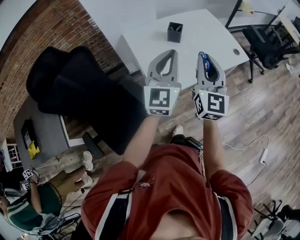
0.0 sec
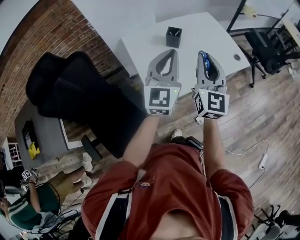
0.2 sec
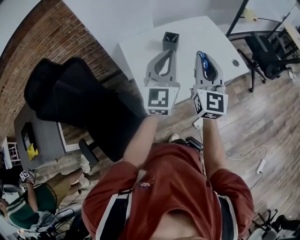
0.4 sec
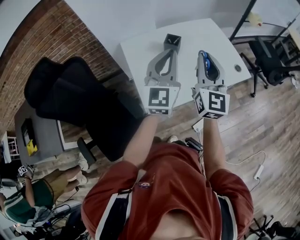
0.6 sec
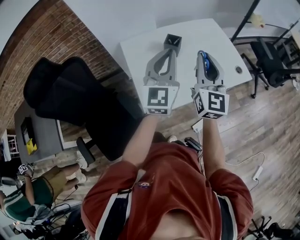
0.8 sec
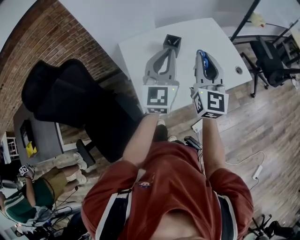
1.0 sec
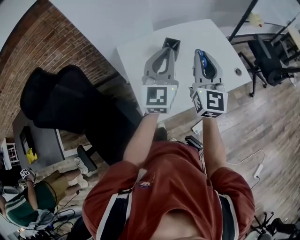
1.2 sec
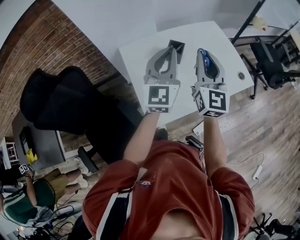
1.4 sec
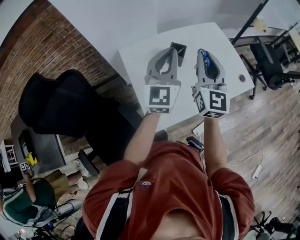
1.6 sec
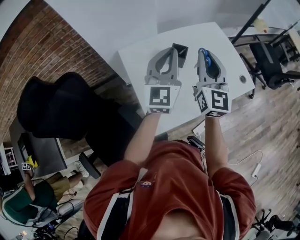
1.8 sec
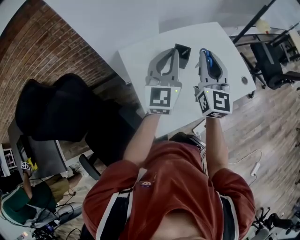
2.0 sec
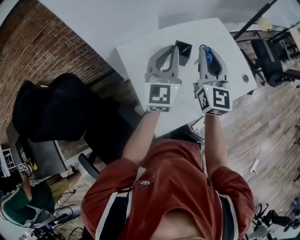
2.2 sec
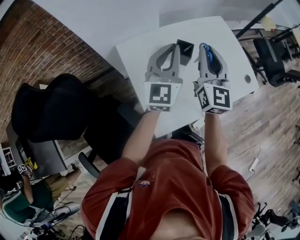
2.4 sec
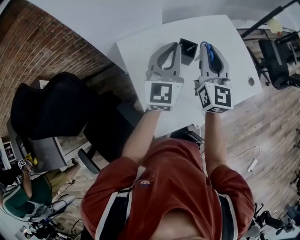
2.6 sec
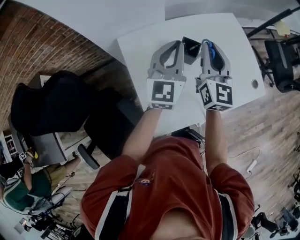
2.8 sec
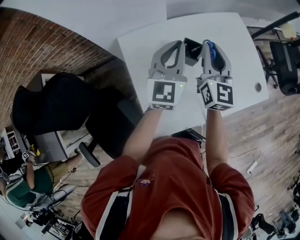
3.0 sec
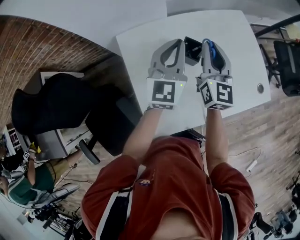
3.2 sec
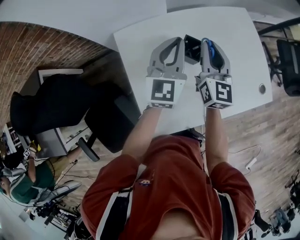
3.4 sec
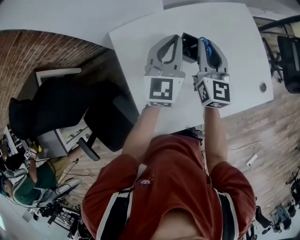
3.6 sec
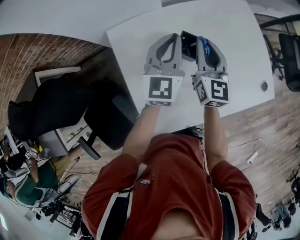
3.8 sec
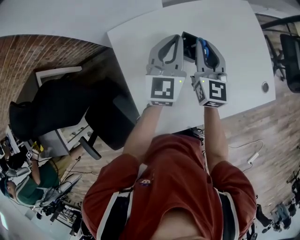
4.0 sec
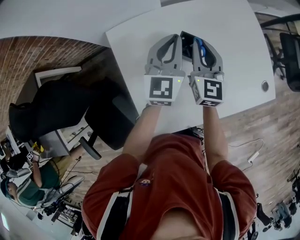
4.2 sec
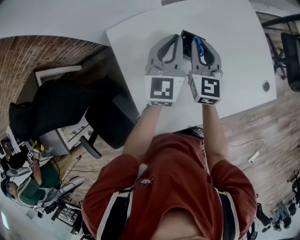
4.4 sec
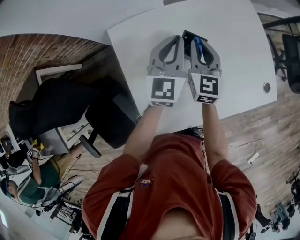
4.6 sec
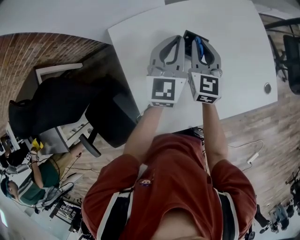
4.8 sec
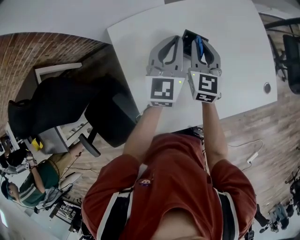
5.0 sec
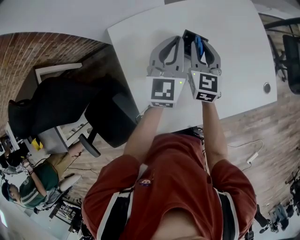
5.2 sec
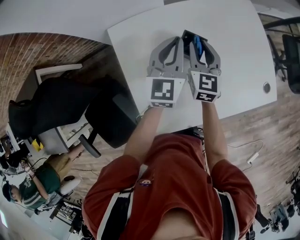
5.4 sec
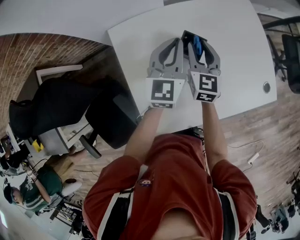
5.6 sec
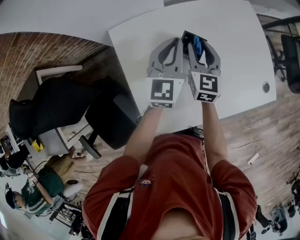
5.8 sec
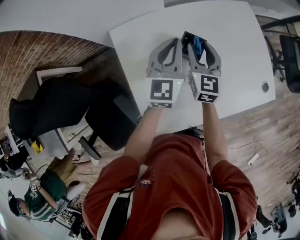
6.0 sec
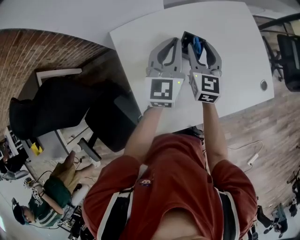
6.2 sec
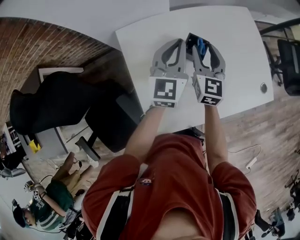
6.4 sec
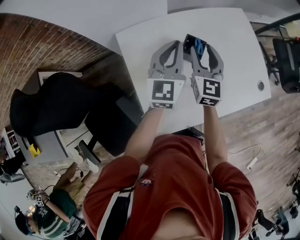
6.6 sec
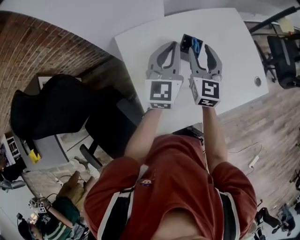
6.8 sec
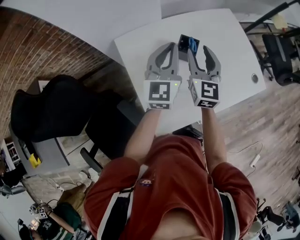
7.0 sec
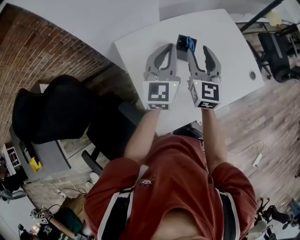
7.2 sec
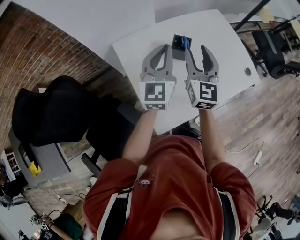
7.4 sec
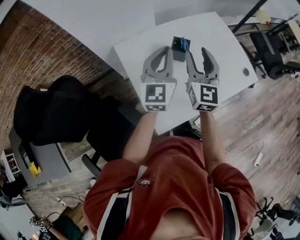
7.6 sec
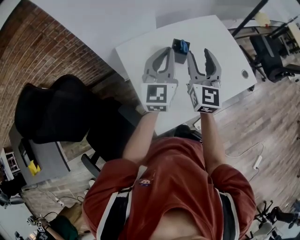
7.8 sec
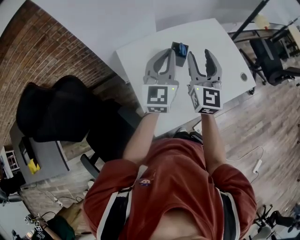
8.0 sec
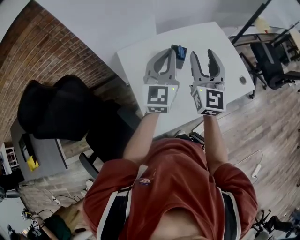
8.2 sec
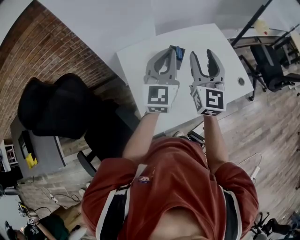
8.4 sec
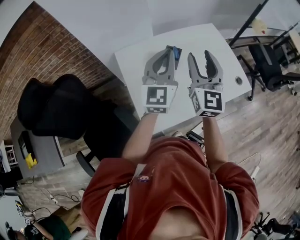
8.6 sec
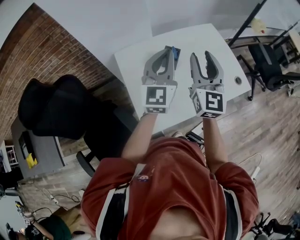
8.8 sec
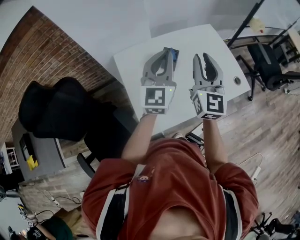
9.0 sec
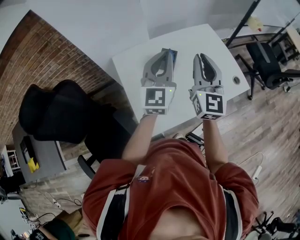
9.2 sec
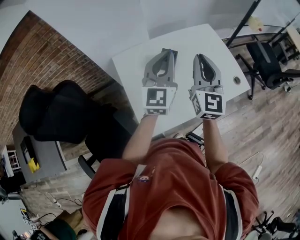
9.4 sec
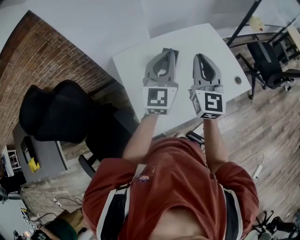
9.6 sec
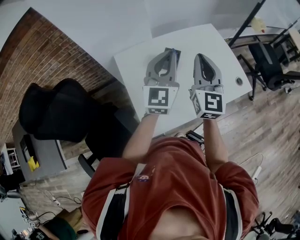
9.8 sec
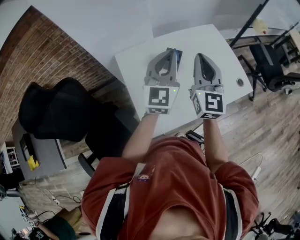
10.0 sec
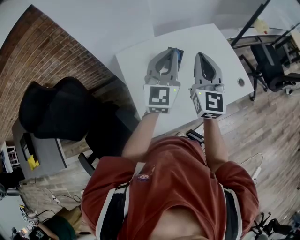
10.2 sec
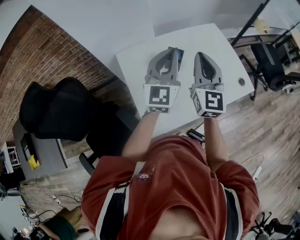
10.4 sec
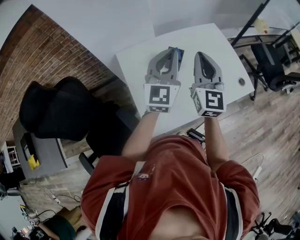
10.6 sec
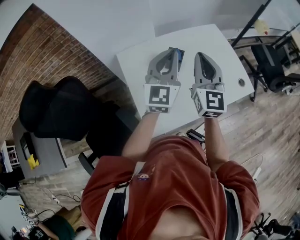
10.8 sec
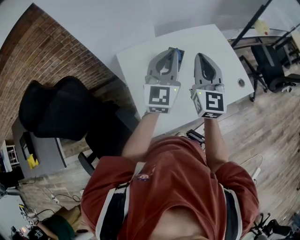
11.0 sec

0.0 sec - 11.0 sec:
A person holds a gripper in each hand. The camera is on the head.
0.0 sec - 1.6 sec: Both grippers travel together forward, some 20 cm.
1.6 sec - 3.2 sec: The grippers both shift forward and downward by about 20 cm.
3.2 sec - 4.8 sec: The right gripper travels downward by roughly 10 cm. The left gripper is displaced downward by approximately 5 cm.
4.8 sec - 6.2 sec: The right gripper opens its fingers.
6.2 sec - 7.8 sec: The right gripper travels upward and backward by approximately 20 cm, while the left gripper moves backward and upward, about 15 cm.
7.8 sec - 9.4 sec: The right gripper travels to the right and upward by about 10 cm, and closes; the left gripper shifts roughly 5 cm to the right.
9.4 sec - 11.0 sec: The grippers stay close to where they were, moving slightly.

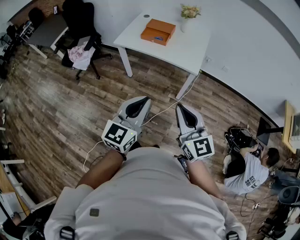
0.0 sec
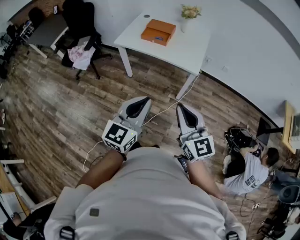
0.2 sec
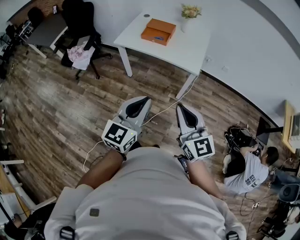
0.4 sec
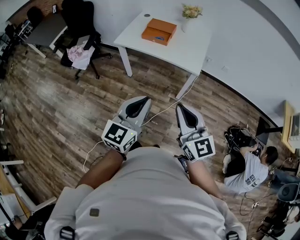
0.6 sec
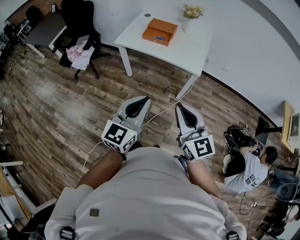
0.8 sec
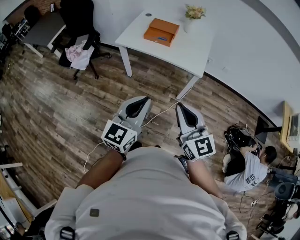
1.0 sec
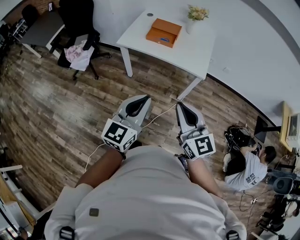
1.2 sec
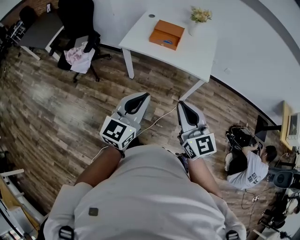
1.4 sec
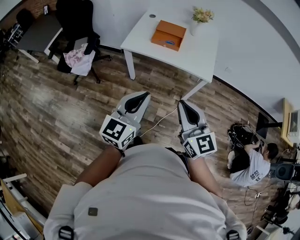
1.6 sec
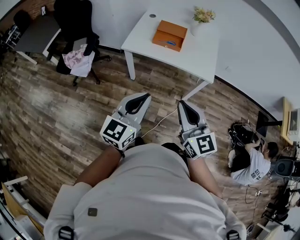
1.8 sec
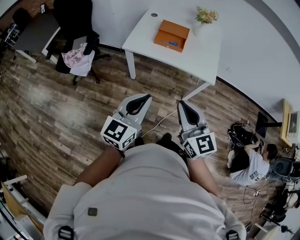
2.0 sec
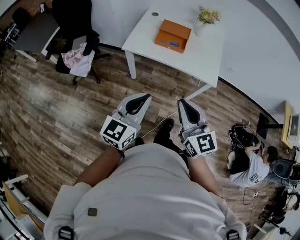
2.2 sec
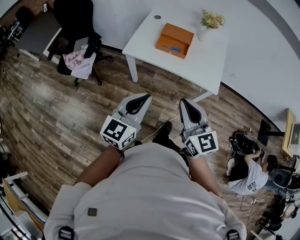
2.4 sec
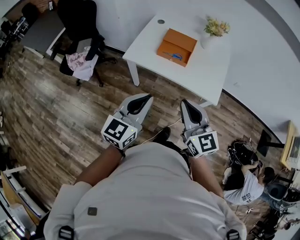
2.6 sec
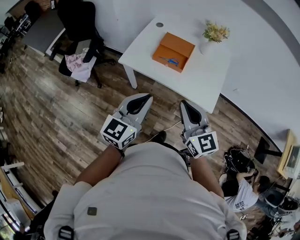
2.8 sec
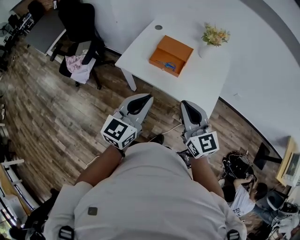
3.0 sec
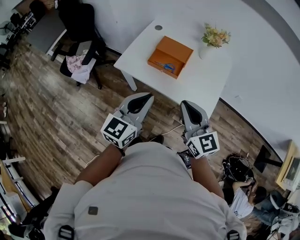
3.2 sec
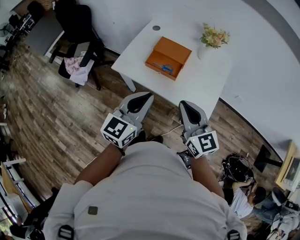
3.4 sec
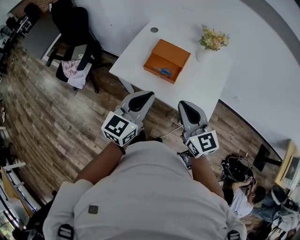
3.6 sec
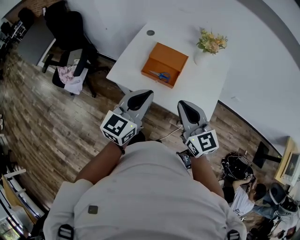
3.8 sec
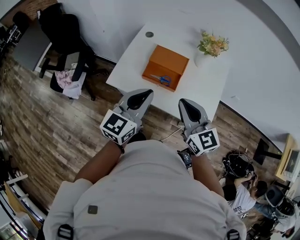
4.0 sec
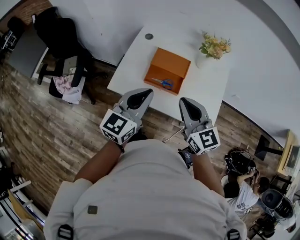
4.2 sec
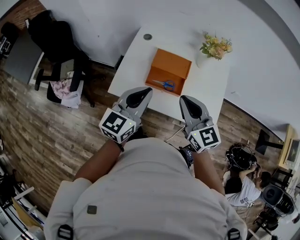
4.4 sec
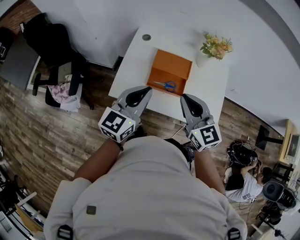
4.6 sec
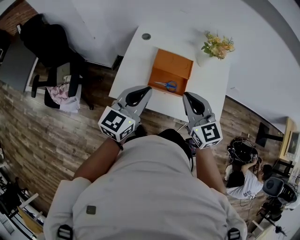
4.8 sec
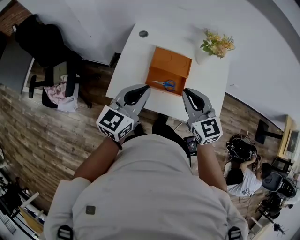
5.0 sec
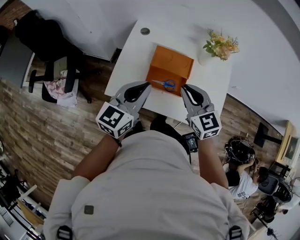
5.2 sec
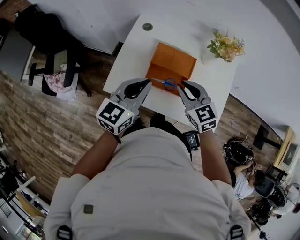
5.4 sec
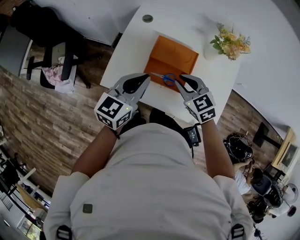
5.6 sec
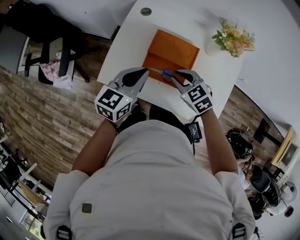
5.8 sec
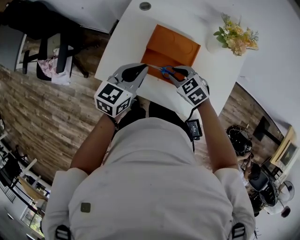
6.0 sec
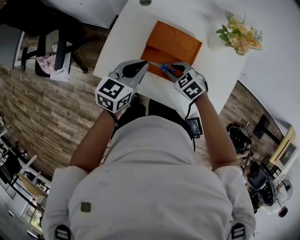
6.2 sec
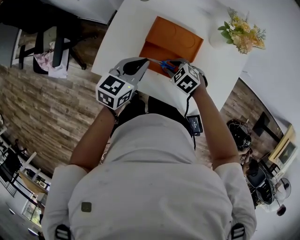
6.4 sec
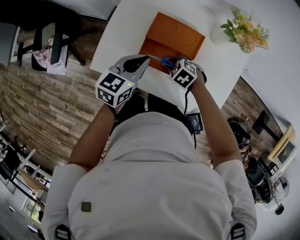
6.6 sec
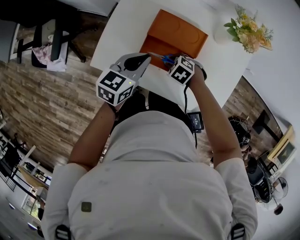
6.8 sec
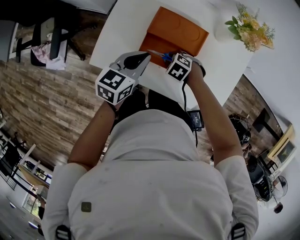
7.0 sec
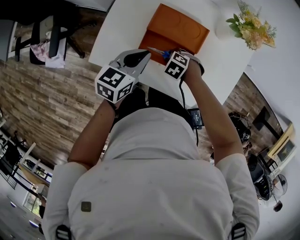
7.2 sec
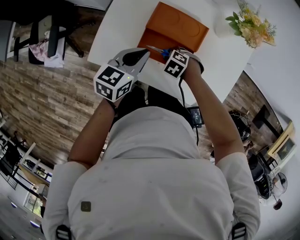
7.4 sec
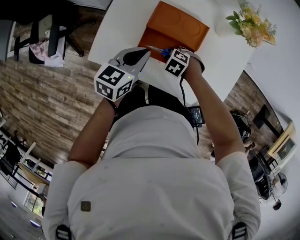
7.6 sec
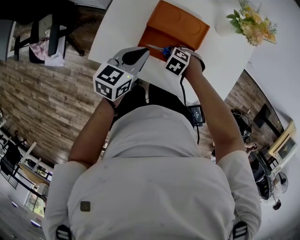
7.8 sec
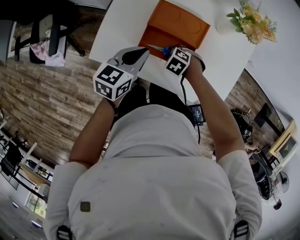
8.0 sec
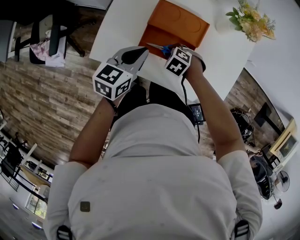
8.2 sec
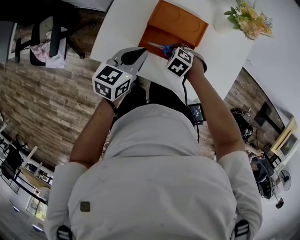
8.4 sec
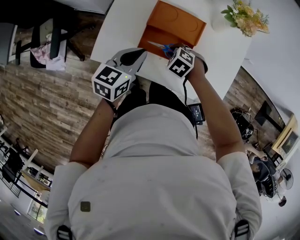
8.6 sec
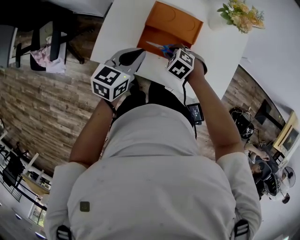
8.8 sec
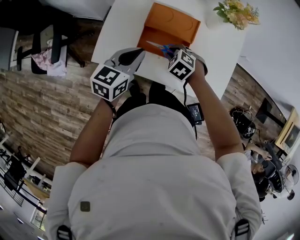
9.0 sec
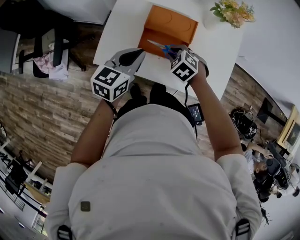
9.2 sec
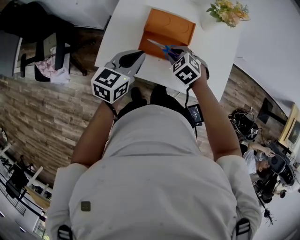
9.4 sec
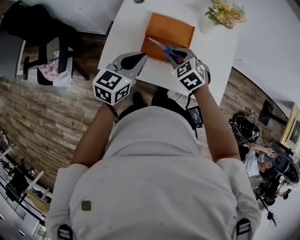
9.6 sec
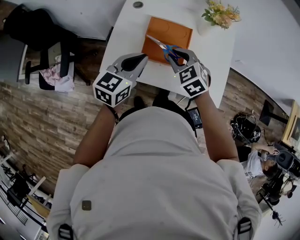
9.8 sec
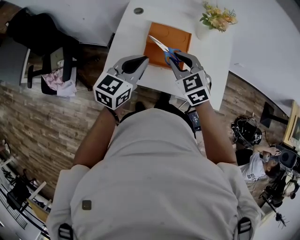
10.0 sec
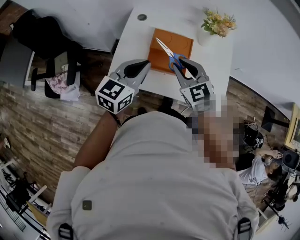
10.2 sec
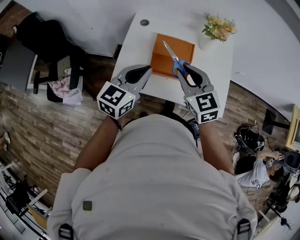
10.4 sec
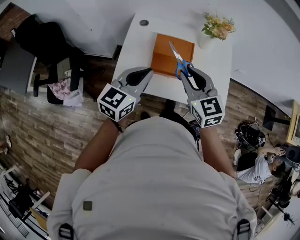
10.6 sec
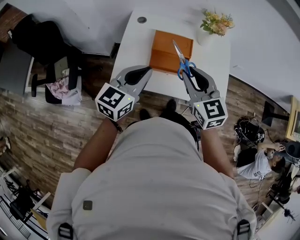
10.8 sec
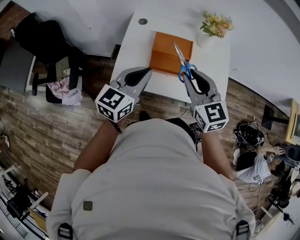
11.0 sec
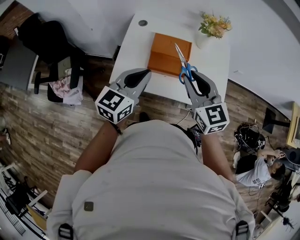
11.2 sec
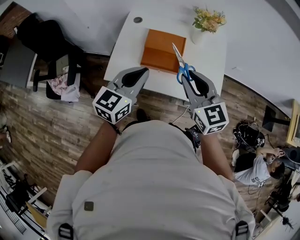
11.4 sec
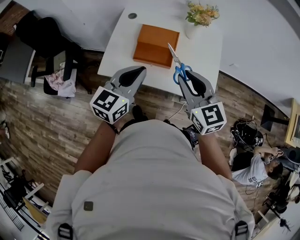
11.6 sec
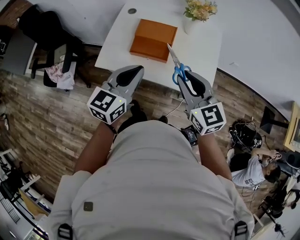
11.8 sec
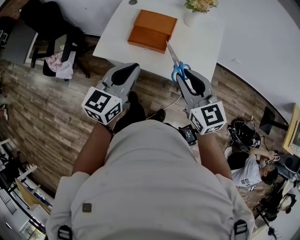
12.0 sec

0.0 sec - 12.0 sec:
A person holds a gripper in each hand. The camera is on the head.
0.0 sec - 1.6 sec: Both grippers travel together to the left and forward, roughly 20 cm.
1.6 sec - 3.0 sec: The two grippers go about 25 cm forward.
3.0 sec - 4.4 sec: The grippers both shift forward by about 20 cm.
4.4 sec - 6.0 sec: The grippers both shift downward and forward by roughly 25 cm. The right gripper points its fingers approximately 40 degrees further downward, and opens up.
6.0 sec - 7.6 sec: The right gripper travels downward by about 15 cm, and swivels some 30 degrees. Meanwhile the left gripper heads downward, covering some 5 cm.
7.6 sec - 9.0 sec: The right gripper heads upward, covering roughly 10 cm, while the left gripper shifts by about 5 cm.
9.0 sec - 10.4 sec: The right gripper travels upward by roughly 25 cm, and tilts its fingers some 50 degrees upward. The left gripper moves upward and backward, approximately 15 cm.
10.4 sec - 12.0 sec: The two grippers go roughly 20 cm to the right and backward.

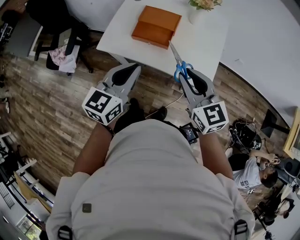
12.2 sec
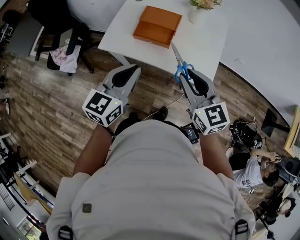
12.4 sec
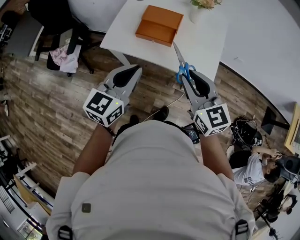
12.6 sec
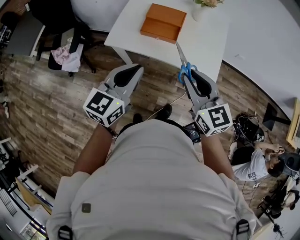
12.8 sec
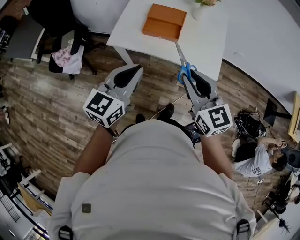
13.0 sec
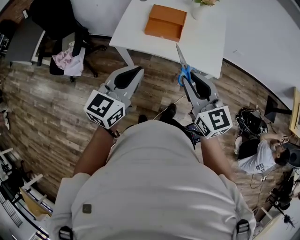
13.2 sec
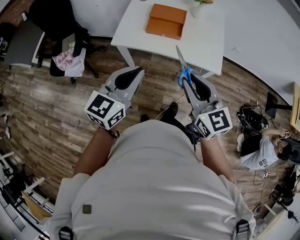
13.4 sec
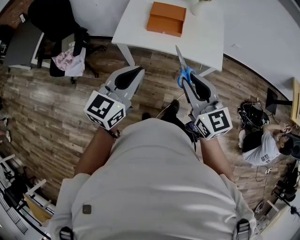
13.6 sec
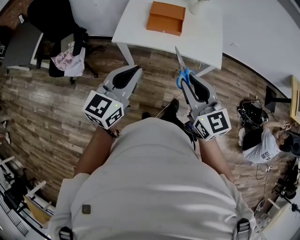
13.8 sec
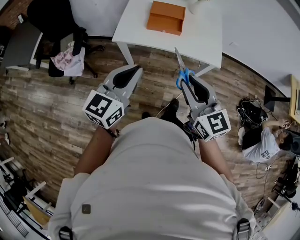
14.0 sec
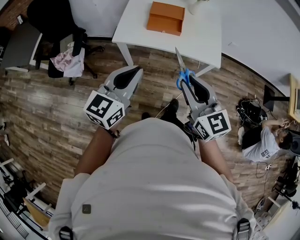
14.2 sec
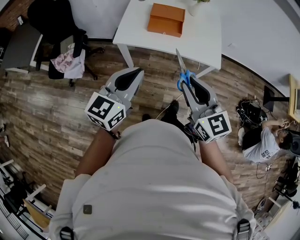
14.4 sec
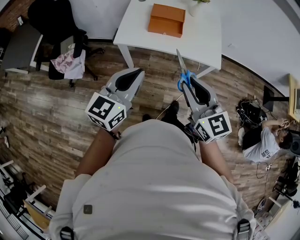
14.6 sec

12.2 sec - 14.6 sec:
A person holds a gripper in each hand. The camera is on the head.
12.2 sec - 13.4 sec: Both grippers travel together backward and to the left, about 20 cm.
13.4 sec - 14.6 sec: The left gripper ends up roughly 5 cm from where it was. The right gripper shifts roughly 5 cm backward.
